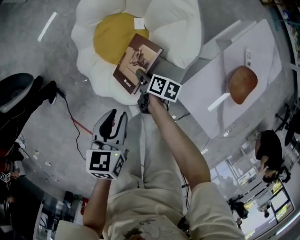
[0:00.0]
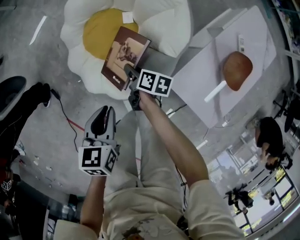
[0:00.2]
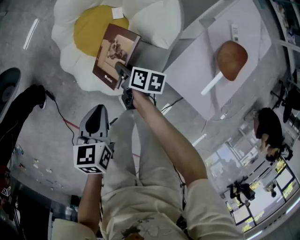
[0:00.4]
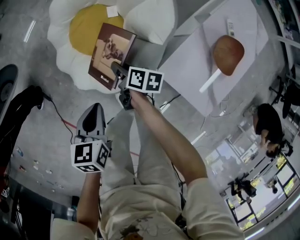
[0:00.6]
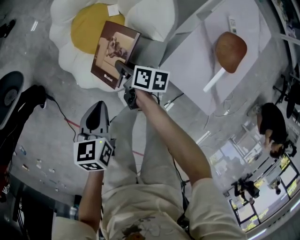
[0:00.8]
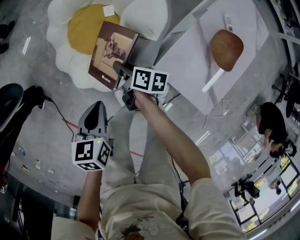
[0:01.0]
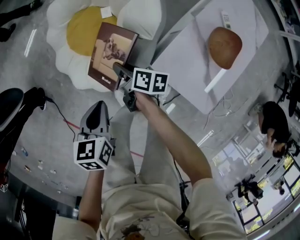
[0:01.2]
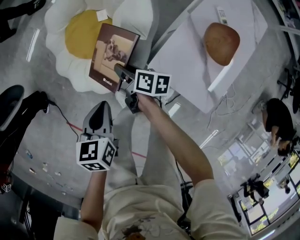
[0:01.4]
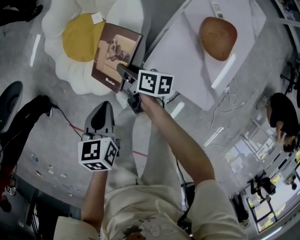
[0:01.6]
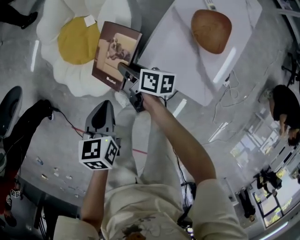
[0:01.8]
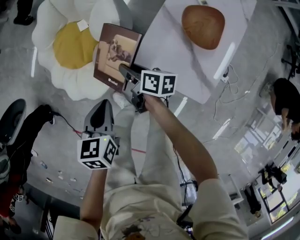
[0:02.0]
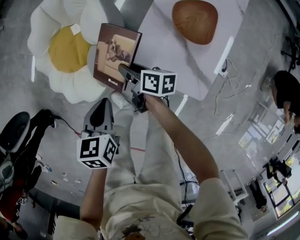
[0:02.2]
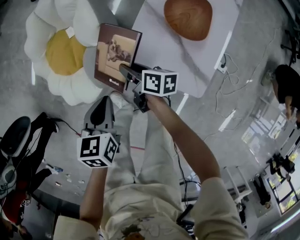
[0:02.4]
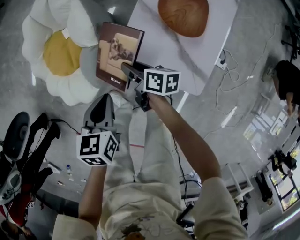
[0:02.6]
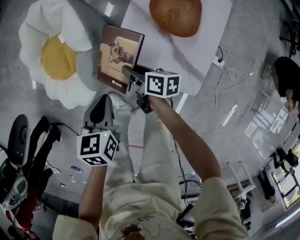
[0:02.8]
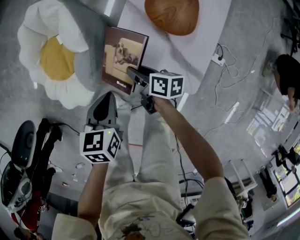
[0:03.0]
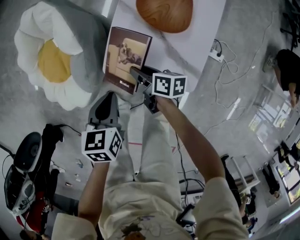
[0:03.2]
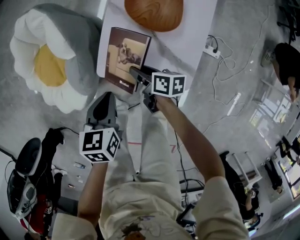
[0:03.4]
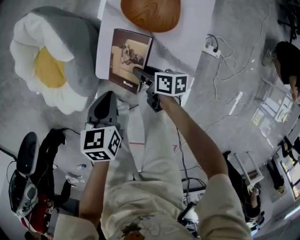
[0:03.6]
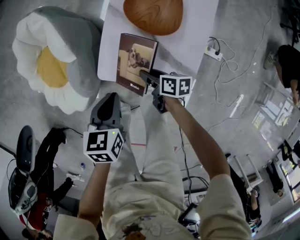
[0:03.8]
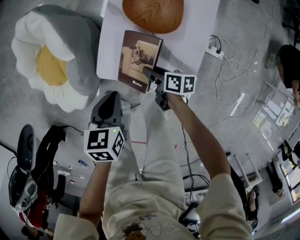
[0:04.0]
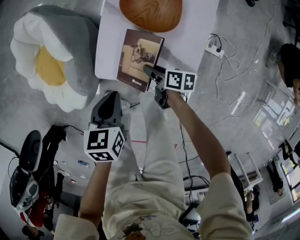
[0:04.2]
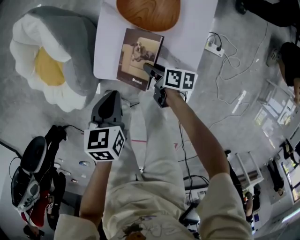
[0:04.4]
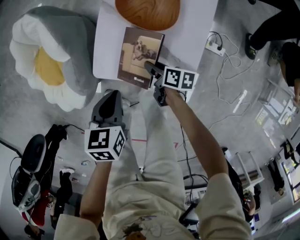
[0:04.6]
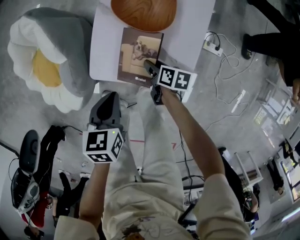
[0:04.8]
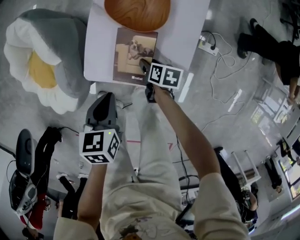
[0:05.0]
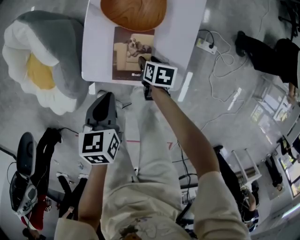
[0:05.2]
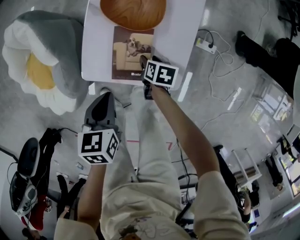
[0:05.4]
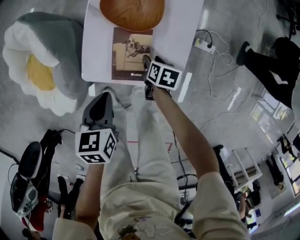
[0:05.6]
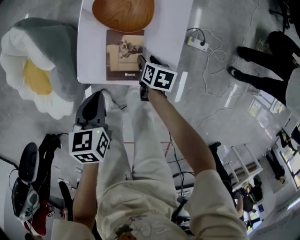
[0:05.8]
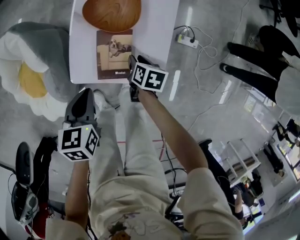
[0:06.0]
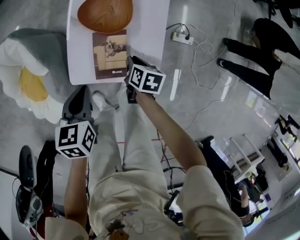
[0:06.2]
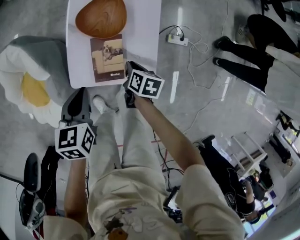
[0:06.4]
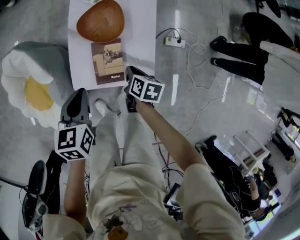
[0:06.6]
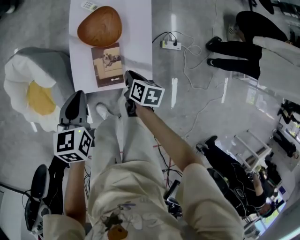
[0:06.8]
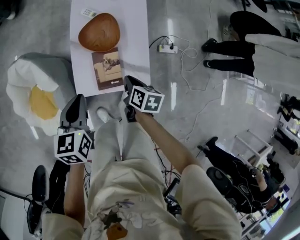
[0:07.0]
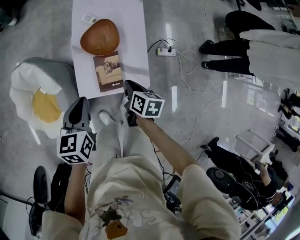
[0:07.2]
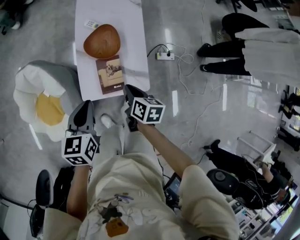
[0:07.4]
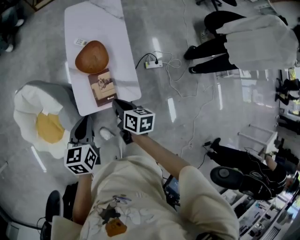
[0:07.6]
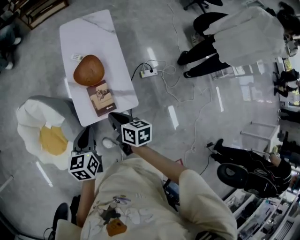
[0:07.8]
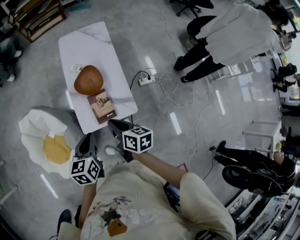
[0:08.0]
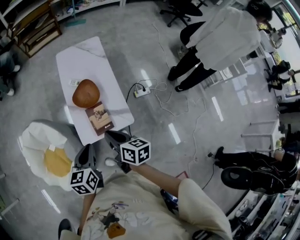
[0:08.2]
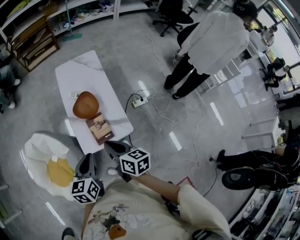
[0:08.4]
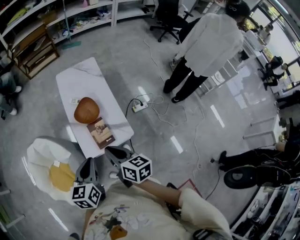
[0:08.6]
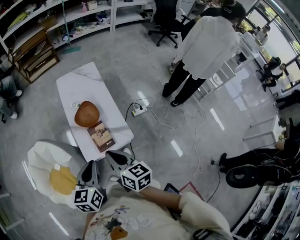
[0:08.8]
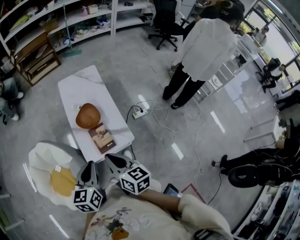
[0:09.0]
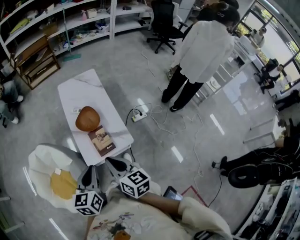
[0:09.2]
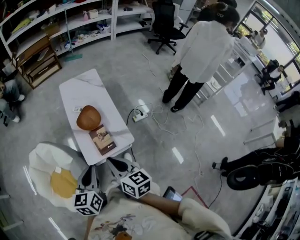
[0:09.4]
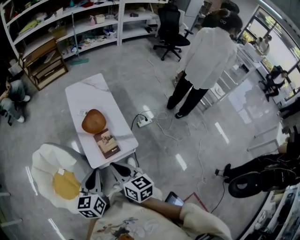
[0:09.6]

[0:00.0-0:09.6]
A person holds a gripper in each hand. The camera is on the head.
0:00.0 to 0:01.6: The left gripper is displaced to the right and backward by about 15 cm, and closes its fingers, while the right gripper moves to the right, backward and upward, roughly 15 cm.
0:01.6 to 0:03.2: Both grippers travel together to the right, roughly 25 cm. The left gripper rotates approximately 20 degrees.
0:03.2 to 0:04.8: The right gripper goes about 15 cm to the right and downward, while the left gripper is displaced to the right by approximately 10 cm.
0:04.8 to 0:06.4: The left gripper is displaced upward by about 10 cm. Meanwhile the right gripper heads upward and to the right, covering about 15 cm, changes its angle by approximately 20 degrees, and closes.
0:06.4 to 0:08.0: The left gripper moves upward and backward, roughly 25 cm, while the right gripper is displaced upward by about 35 cm, and turns by some 30 degrees.
0:08.0 to 0:09.6: The left gripper goes approximately 20 cm backward and upward. Meanwhile the right gripper is displaced upward and backward by about 20 cm, and changes its angle by about 20 degrees.

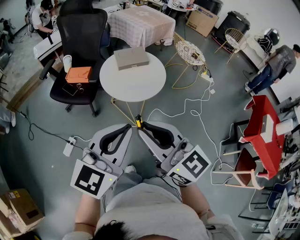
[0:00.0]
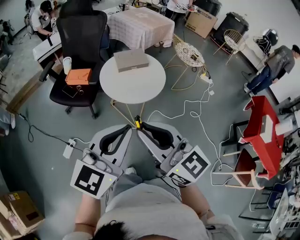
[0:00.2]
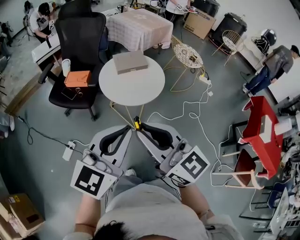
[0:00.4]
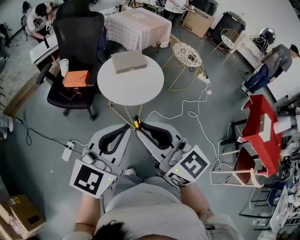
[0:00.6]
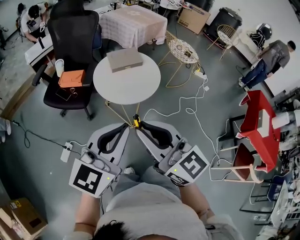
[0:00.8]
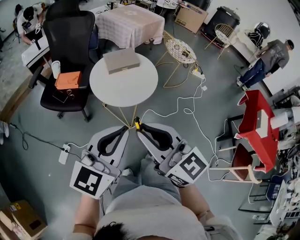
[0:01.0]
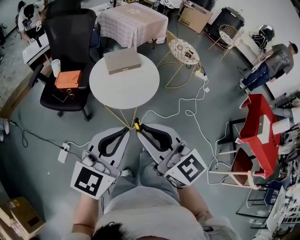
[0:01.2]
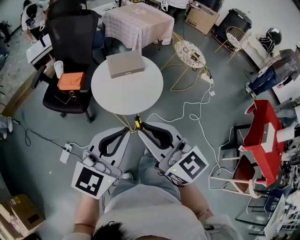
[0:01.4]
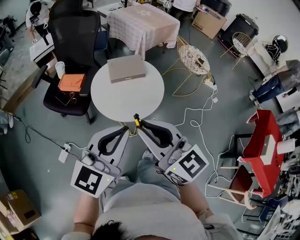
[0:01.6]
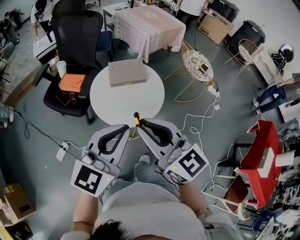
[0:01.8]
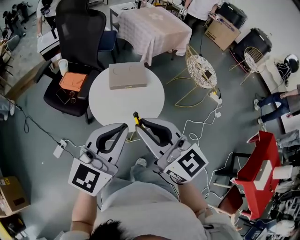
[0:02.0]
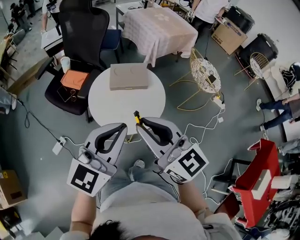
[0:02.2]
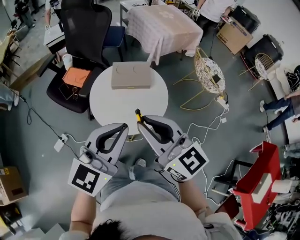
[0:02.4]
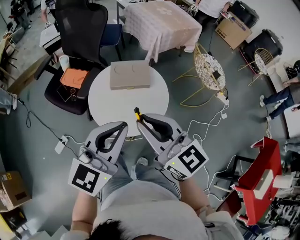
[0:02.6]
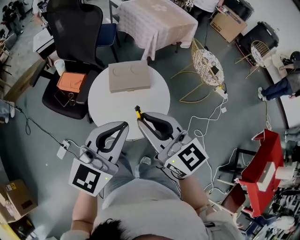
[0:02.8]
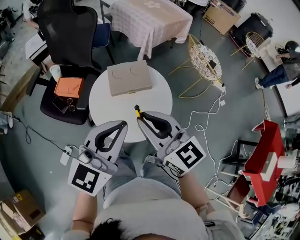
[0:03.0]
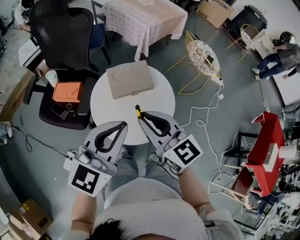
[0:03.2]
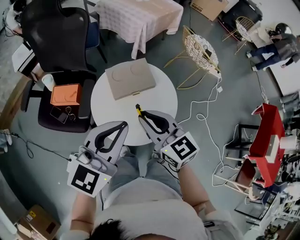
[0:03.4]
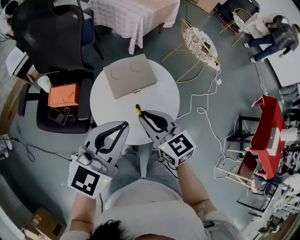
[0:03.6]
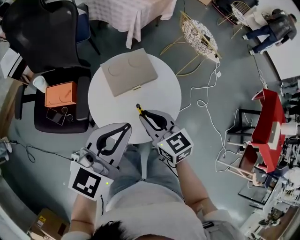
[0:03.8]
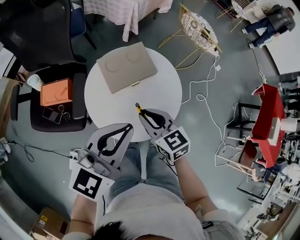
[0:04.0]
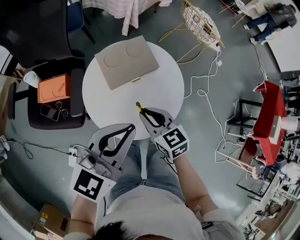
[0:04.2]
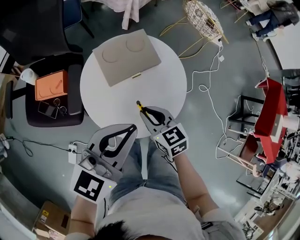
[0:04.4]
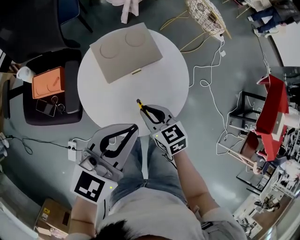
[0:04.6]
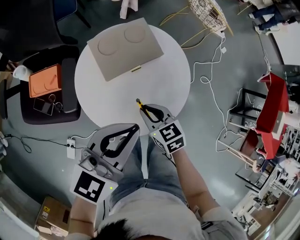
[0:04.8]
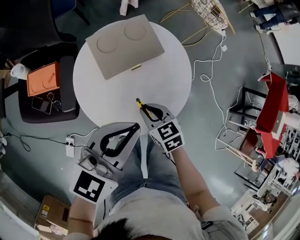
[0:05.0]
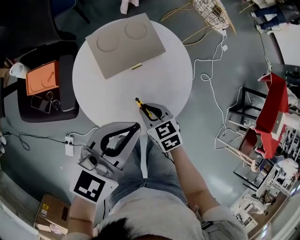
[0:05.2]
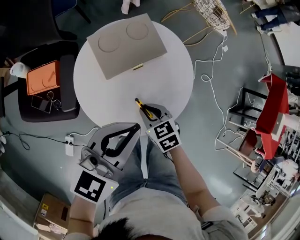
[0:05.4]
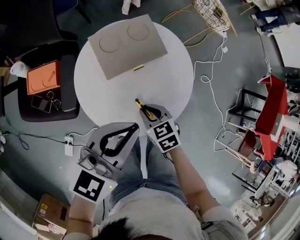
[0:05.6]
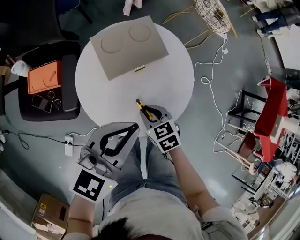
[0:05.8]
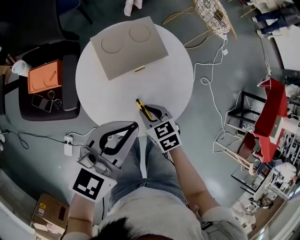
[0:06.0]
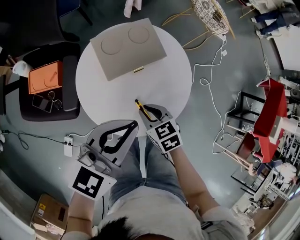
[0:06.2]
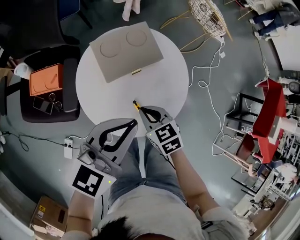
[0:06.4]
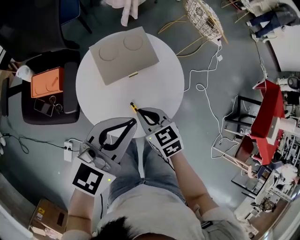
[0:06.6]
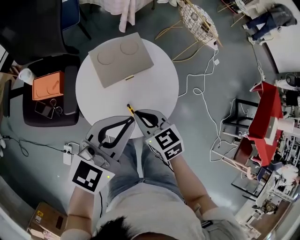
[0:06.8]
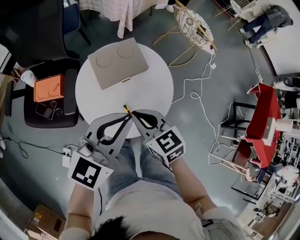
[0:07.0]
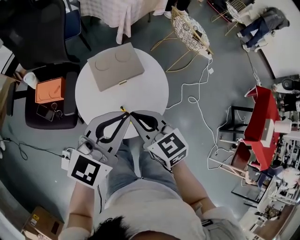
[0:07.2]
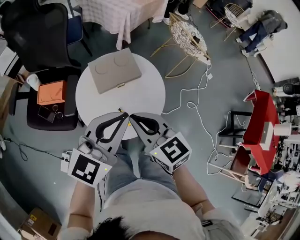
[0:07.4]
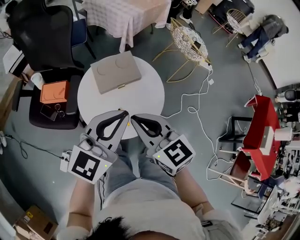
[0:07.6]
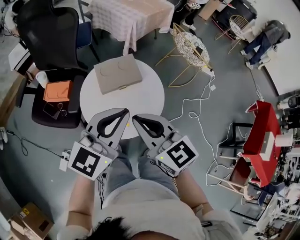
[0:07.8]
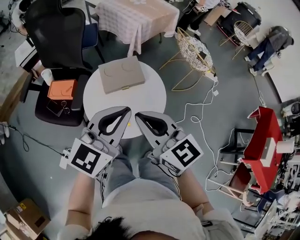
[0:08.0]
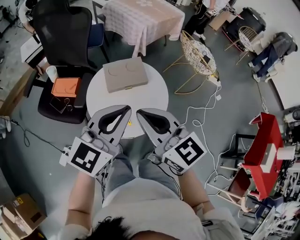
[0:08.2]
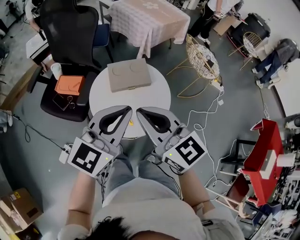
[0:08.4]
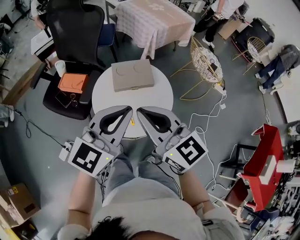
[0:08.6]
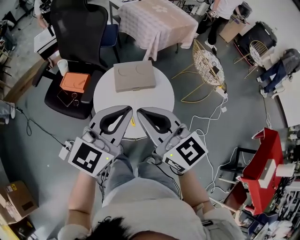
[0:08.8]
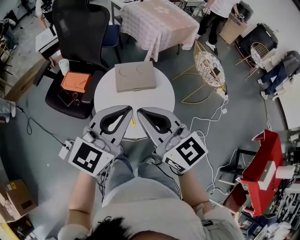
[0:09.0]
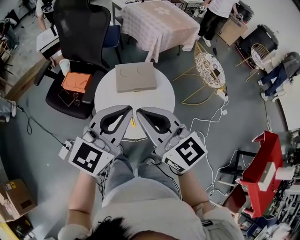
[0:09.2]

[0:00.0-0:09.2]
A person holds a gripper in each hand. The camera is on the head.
0:00.0 to 0:01.6: The two grippers go about 15 cm forward and to the right.
0:01.6 to 0:03.0: Both grippers move forward, roughly 20 cm.
0:03.0 to 0:04.6: The right gripper goes some 30 cm downward, and tips its fingers downward by about 30 degrees; the left gripper goes about 15 cm downward and forward, and rotates approximately 20 degrees.
0:06.2 to 0:07.6: The left gripper heads upward and to the right, covering roughly 15 cm, while the right gripper travels upward by some 30 cm, and tips its fingers upward by roughly 30 degrees.
0:07.6 to 0:09.2: The right gripper goes approximately 10 cm upward, and turns by about 20 degrees. The left gripper changes place by some 5 cm.

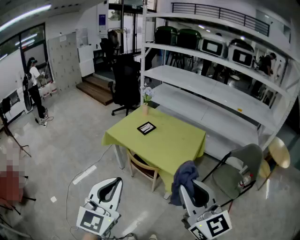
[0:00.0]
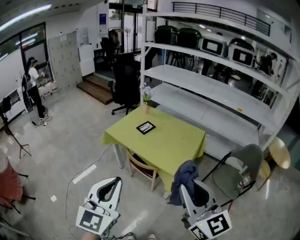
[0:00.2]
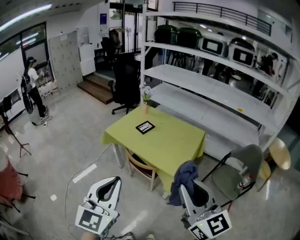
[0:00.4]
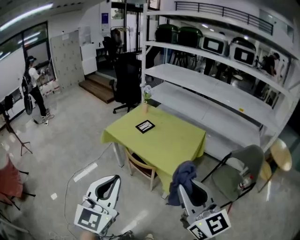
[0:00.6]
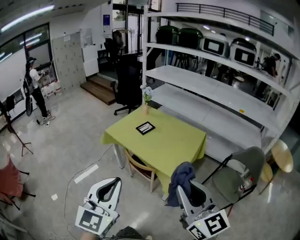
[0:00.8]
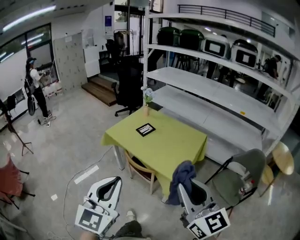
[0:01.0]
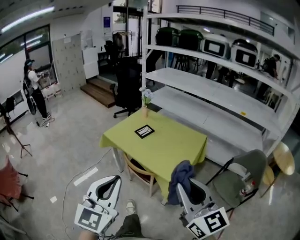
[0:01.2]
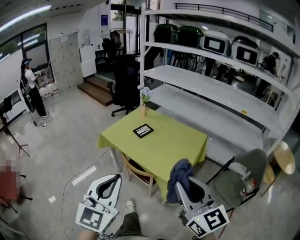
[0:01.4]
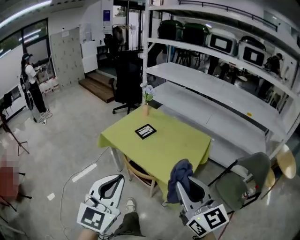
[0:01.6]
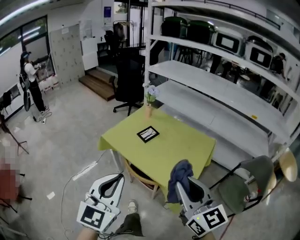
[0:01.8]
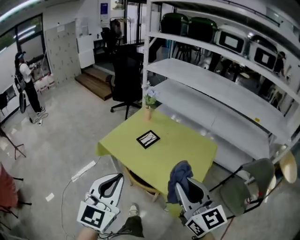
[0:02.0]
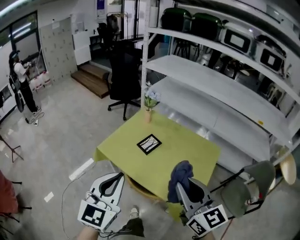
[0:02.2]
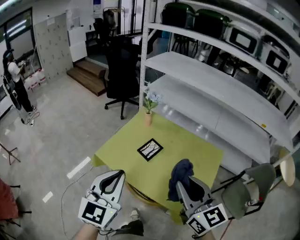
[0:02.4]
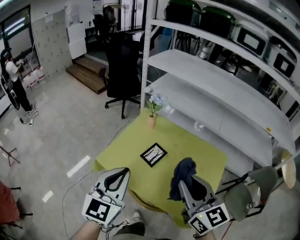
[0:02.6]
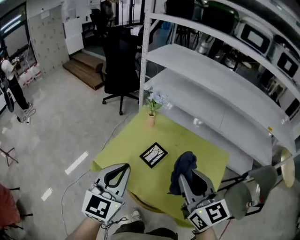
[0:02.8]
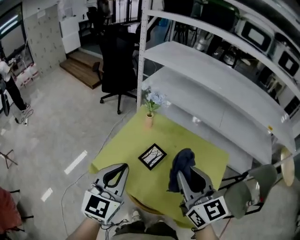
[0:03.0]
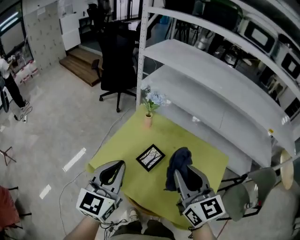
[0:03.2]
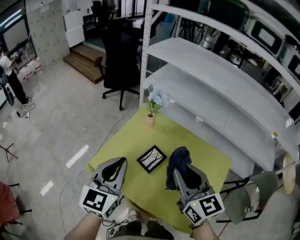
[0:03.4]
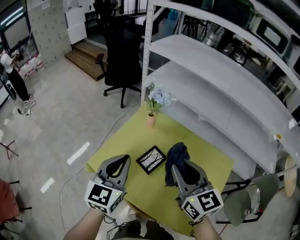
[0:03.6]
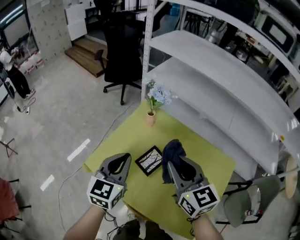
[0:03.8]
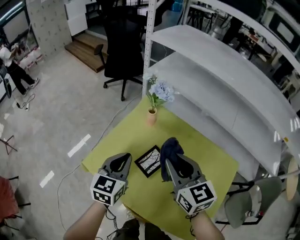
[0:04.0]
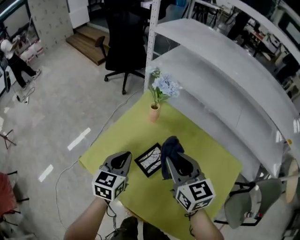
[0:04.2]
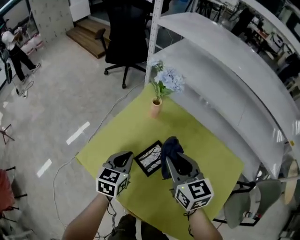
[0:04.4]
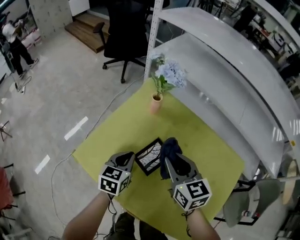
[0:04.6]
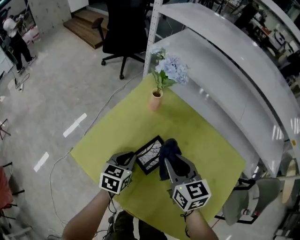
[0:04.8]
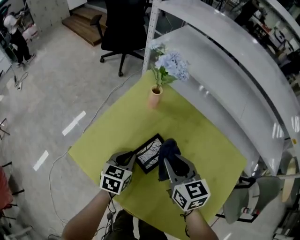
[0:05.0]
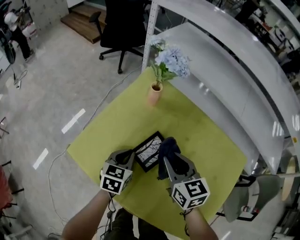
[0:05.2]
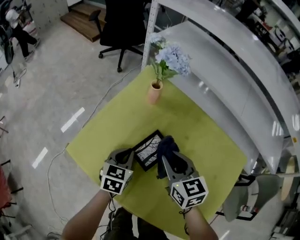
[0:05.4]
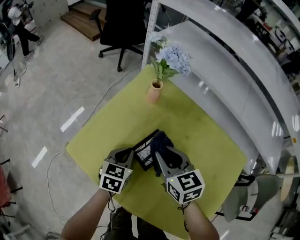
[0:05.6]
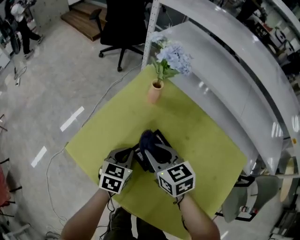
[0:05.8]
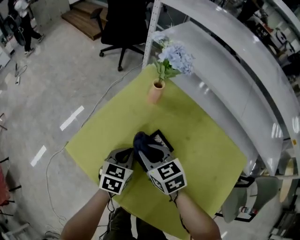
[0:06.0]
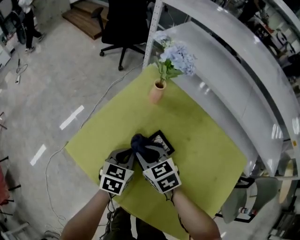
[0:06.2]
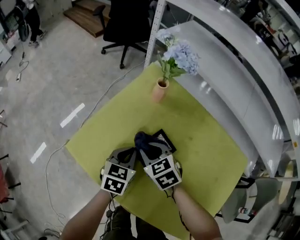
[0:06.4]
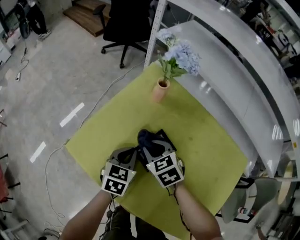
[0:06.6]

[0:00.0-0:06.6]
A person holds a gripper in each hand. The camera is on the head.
0:00.0 to 0:01.6: The left gripper is displaced forward, downward and to the right by some 15 cm. The right gripper goes approximately 15 cm forward and downward.
0:01.6 to 0:03.2: Both grippers are carried forward, roughly 50 cm.
0:03.2 to 0:05.0: The left gripper shifts about 35 cm downward, and angles its fingers downward, by some 30 degrees; the right gripper is displaced downward and forward by roughly 30 cm, and changes its angle by roughly 20 degrees.
0:05.0 to 0:06.6: The right gripper moves downward and to the left, some 15 cm, and swivels about 30 degrees.
